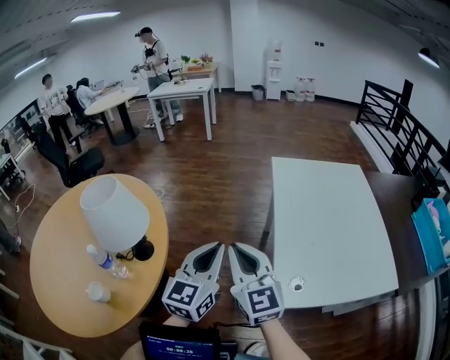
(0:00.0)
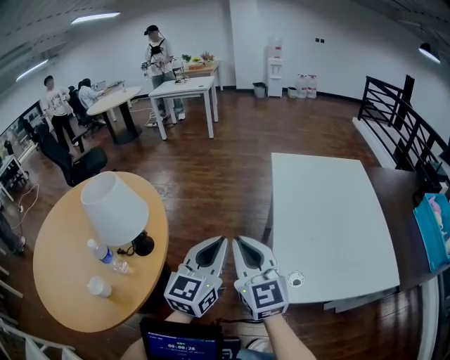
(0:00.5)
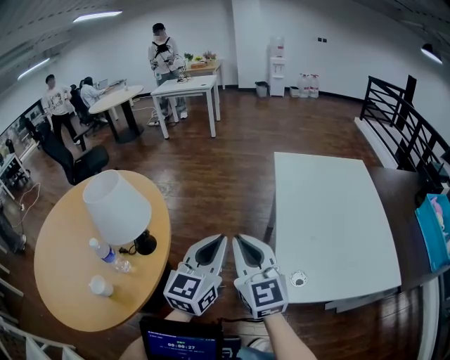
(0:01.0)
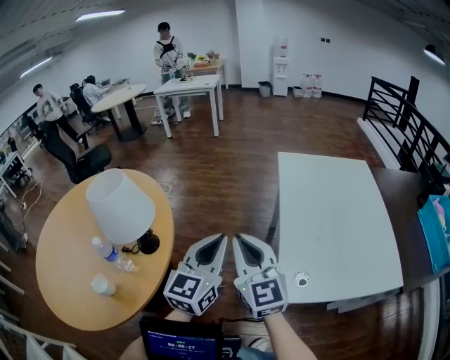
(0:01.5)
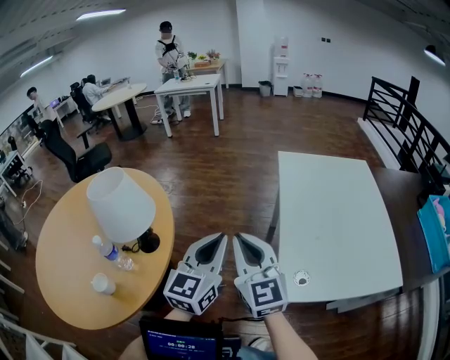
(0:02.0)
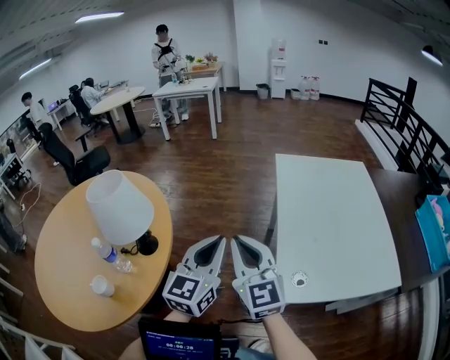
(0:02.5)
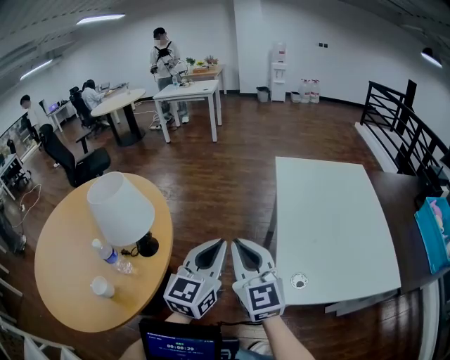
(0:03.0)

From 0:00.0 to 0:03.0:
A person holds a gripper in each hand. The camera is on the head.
From 0:00.0 to 0:01.5: The grippers move only a little.
From 0:01.5 to 0:03.0: Both grippers stay put.

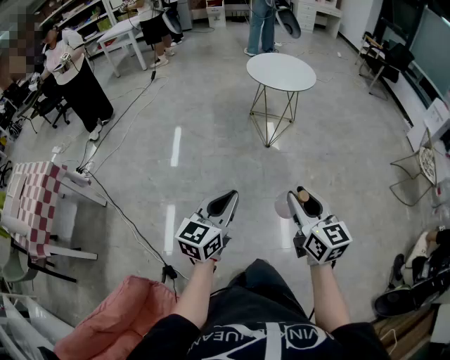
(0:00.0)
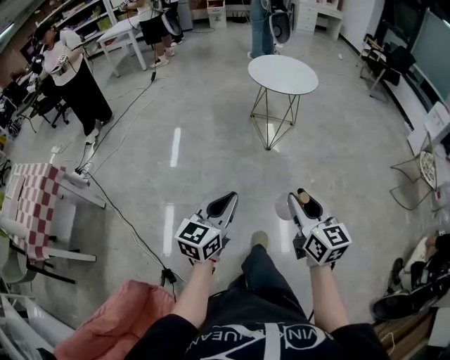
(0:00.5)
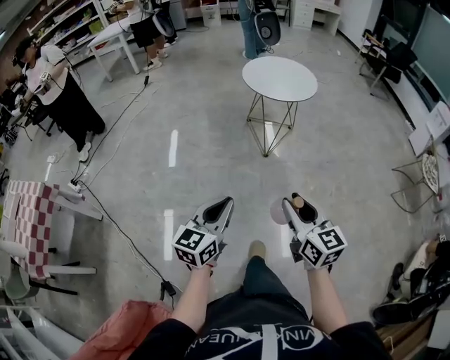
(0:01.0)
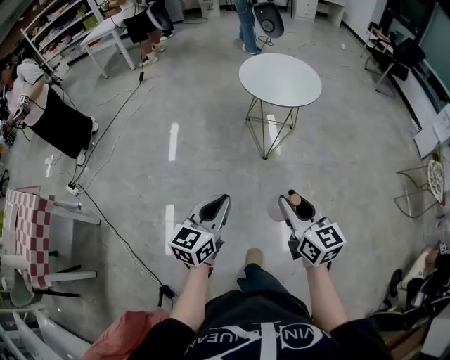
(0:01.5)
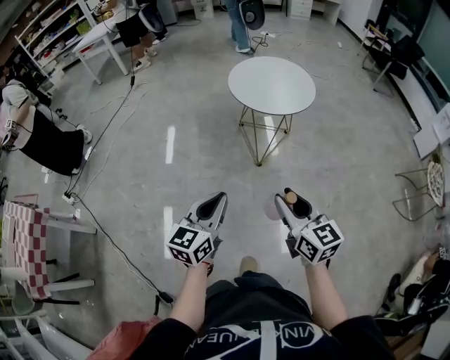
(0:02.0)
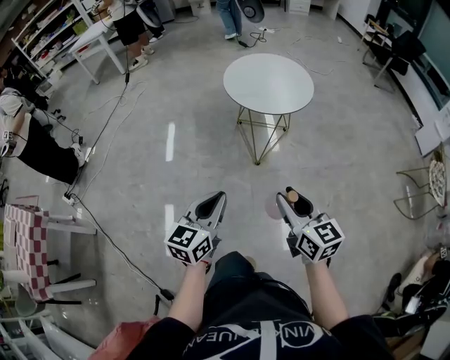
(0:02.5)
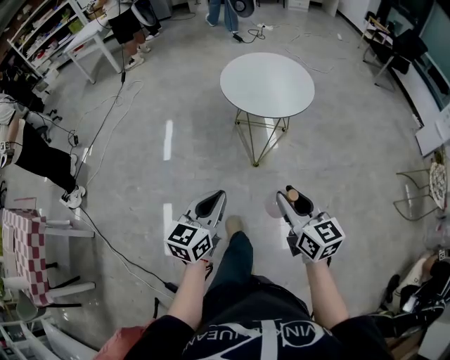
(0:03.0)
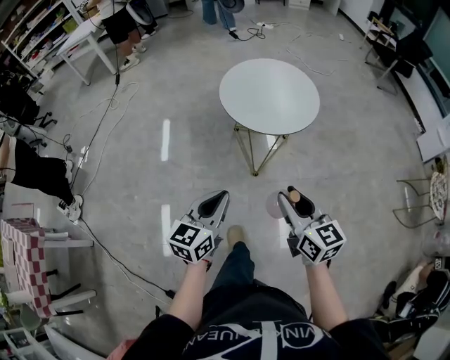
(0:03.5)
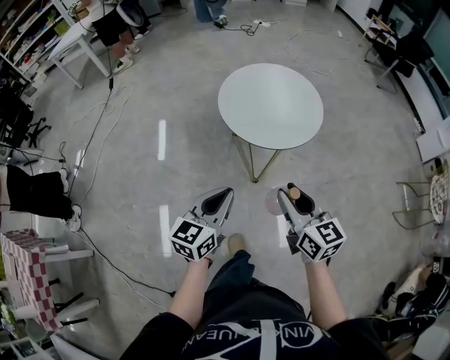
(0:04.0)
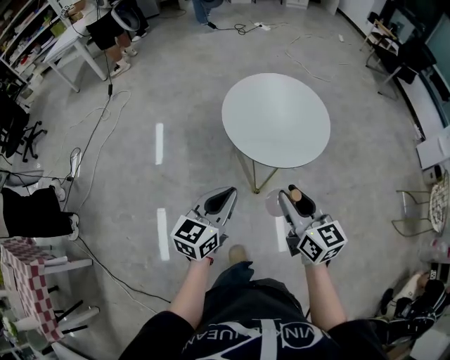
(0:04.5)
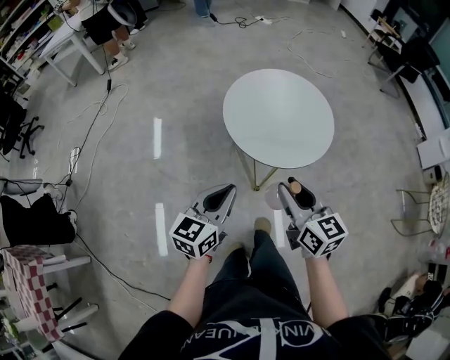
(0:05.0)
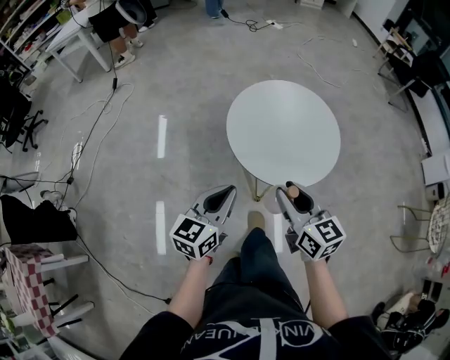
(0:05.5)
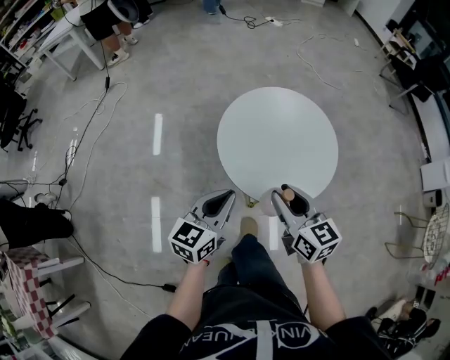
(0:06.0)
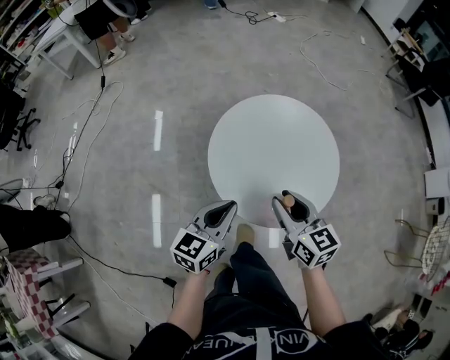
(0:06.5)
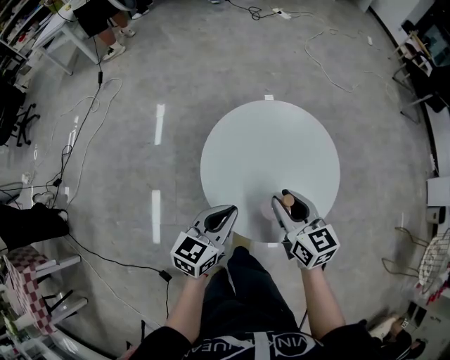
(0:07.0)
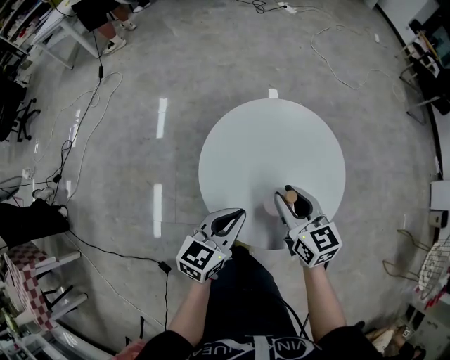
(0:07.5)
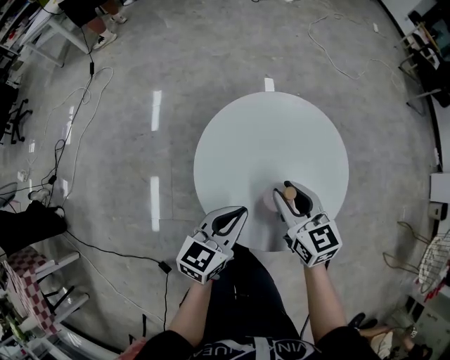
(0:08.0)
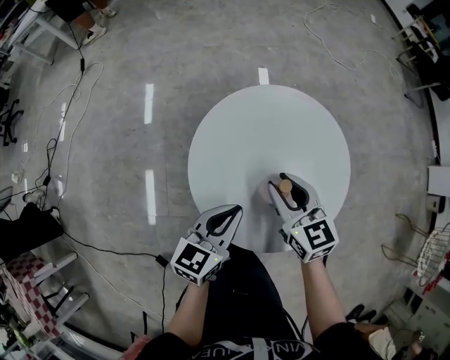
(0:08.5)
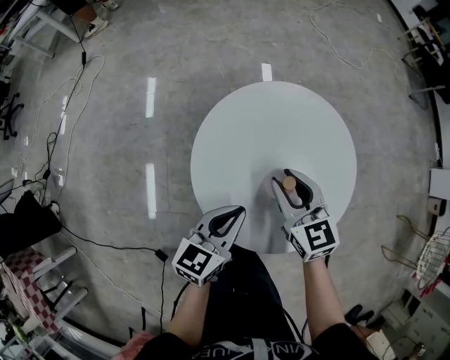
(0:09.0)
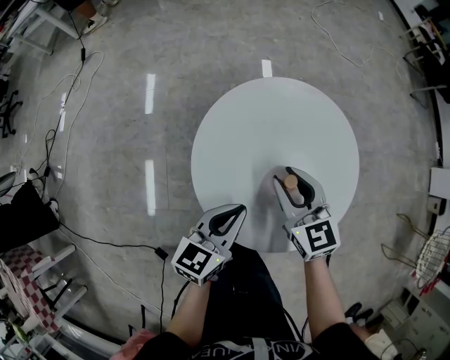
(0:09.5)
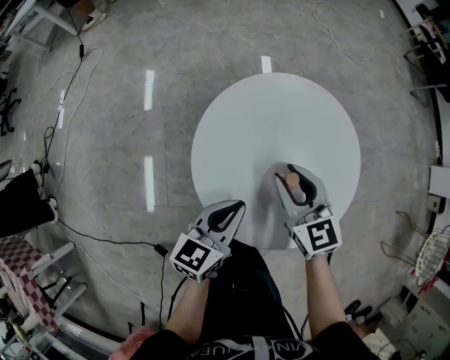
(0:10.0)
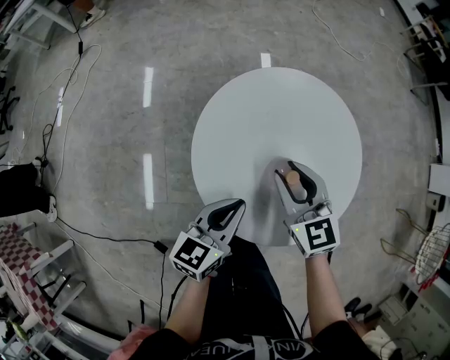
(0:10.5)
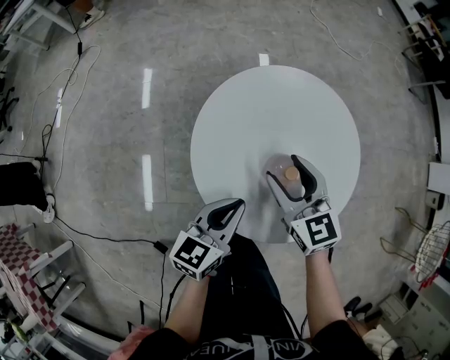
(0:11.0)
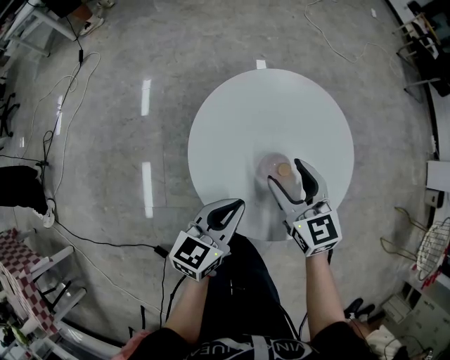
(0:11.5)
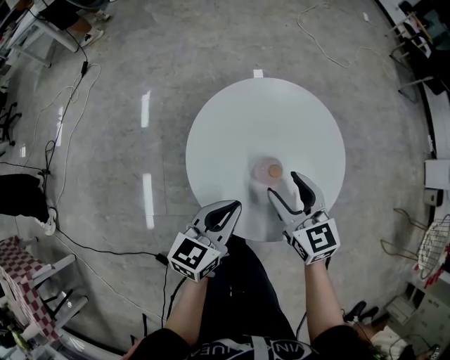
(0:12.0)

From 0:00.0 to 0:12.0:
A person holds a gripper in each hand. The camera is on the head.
From 0:00.0 to 0:02.0: Both grippers travel together forward, approximately 30 cm.
From 0:02.0 to 0:04.0: Both grippers travel together forward, roughly 25 cm.
From 0:04.0 to 0:06.0: Both grippers move forward, approximately 25 cm.
From 0:06.0 to 0:08.0: The left gripper heads forward, downward and to the right, covering some 15 cm. Meanwhile the right gripper is displaced forward and downward by approximately 20 cm.
From 0:08.0 to 0:10.0: The grippers stay close to where they were, moving slightly.
From 0:10.0 to 0:12.0: The right gripper ends up about 5 cm from where it was, and opens its fingers.

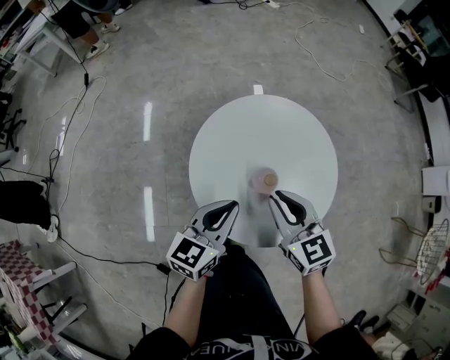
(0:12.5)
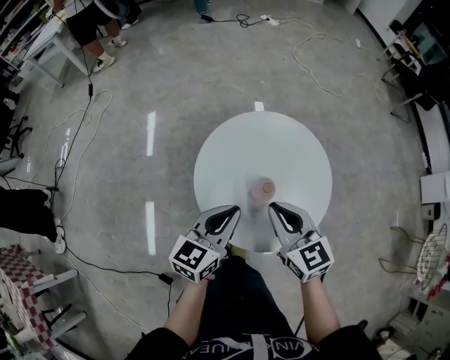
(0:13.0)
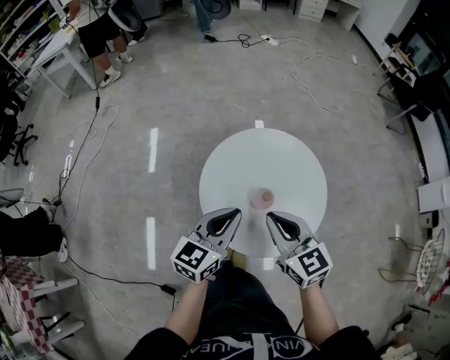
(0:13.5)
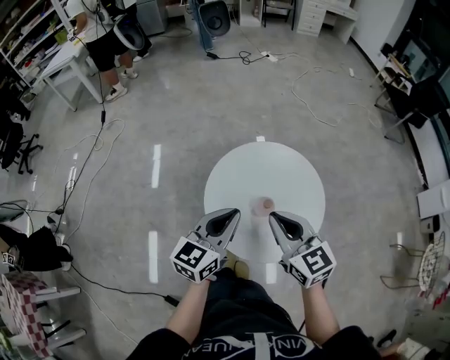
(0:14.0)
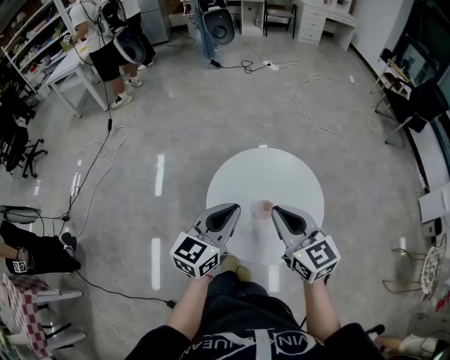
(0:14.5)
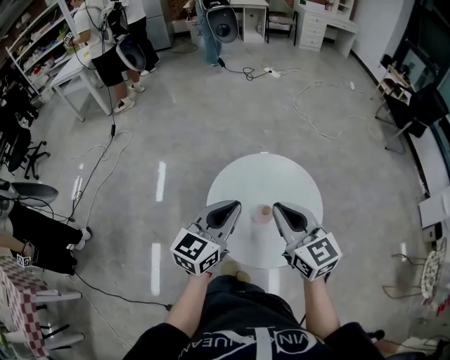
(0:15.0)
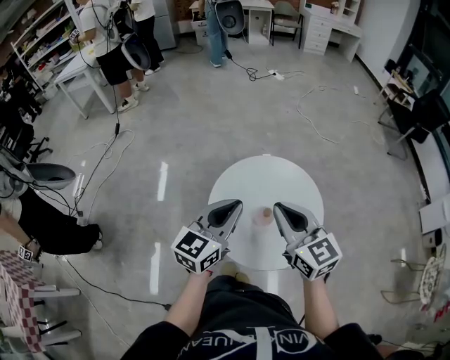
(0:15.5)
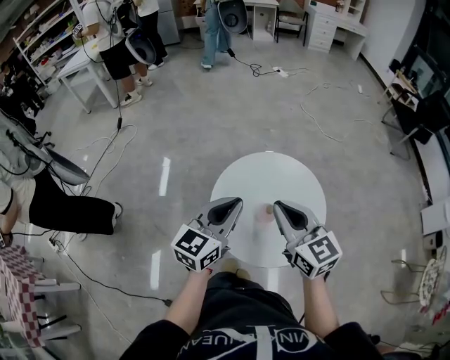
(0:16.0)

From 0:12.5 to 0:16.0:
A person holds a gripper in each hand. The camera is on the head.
From 0:12.5 to 0:14.5: The grippers both shift upward by some 15 cm.
From 0:14.5 to 0:16.0: There are only small adjustments of the grippers.

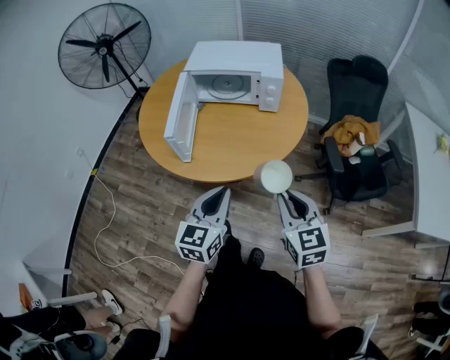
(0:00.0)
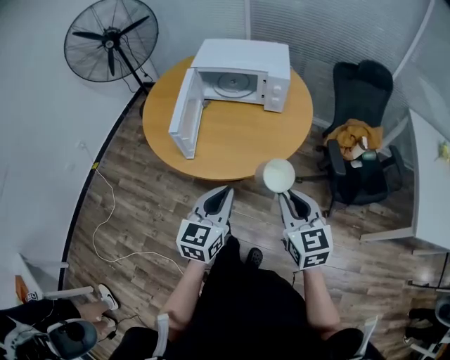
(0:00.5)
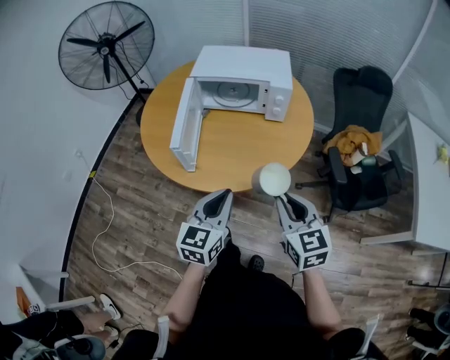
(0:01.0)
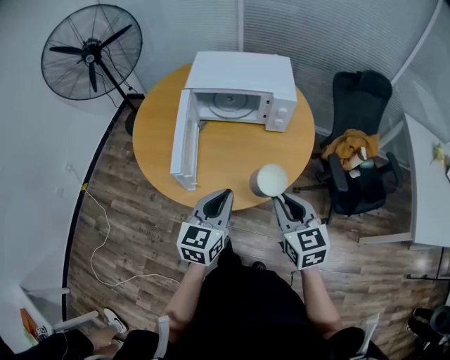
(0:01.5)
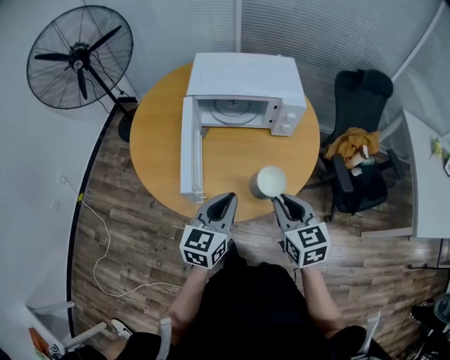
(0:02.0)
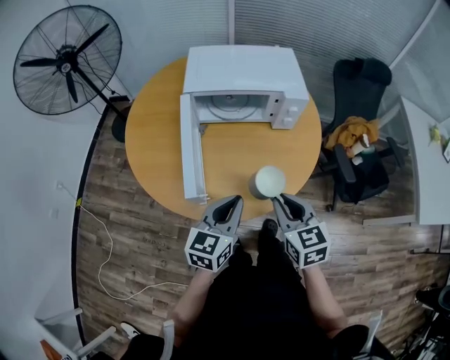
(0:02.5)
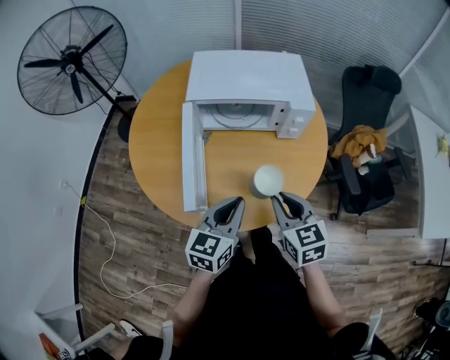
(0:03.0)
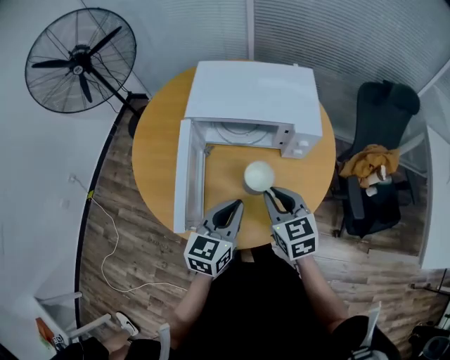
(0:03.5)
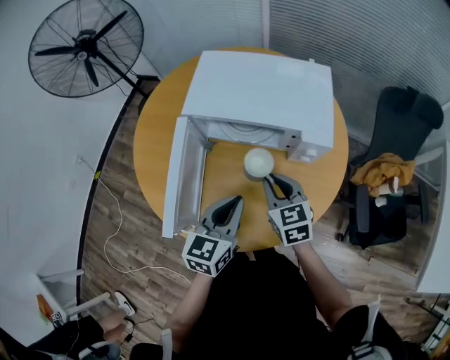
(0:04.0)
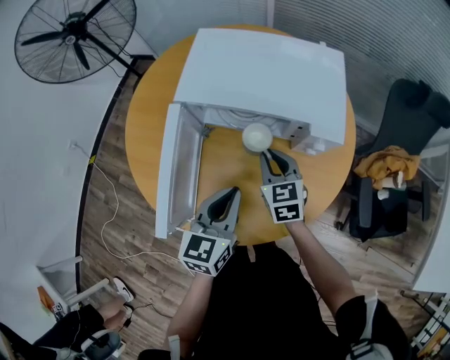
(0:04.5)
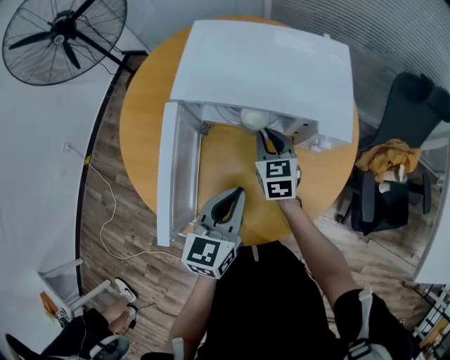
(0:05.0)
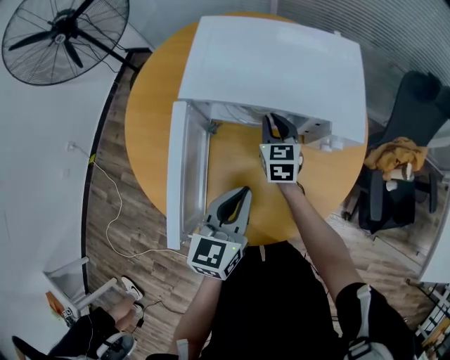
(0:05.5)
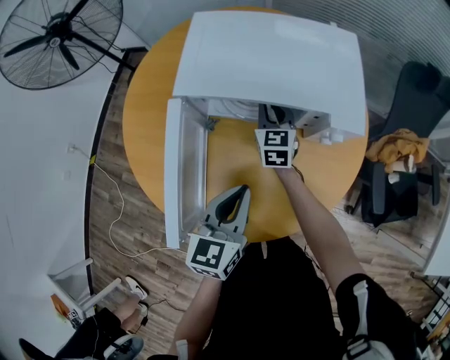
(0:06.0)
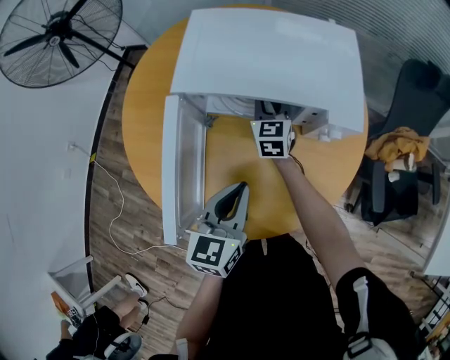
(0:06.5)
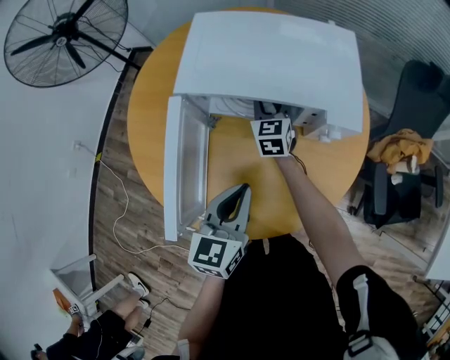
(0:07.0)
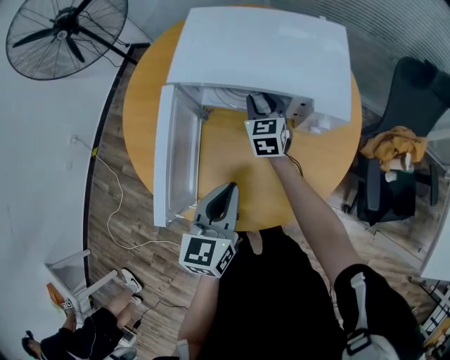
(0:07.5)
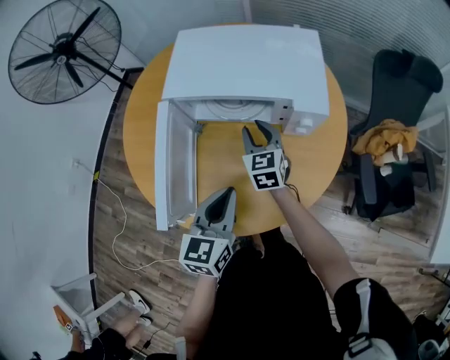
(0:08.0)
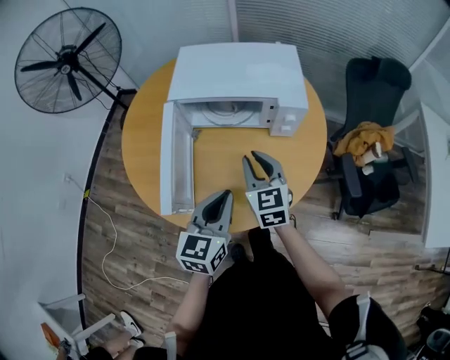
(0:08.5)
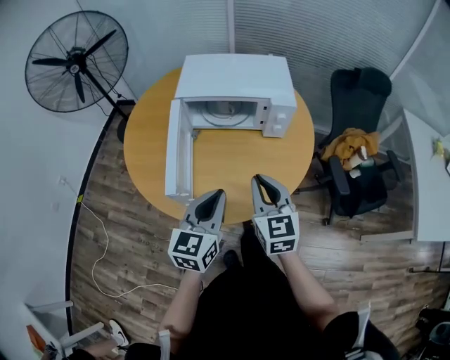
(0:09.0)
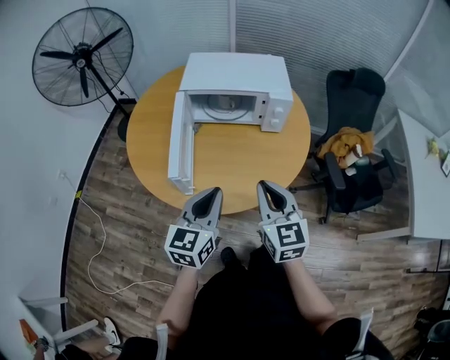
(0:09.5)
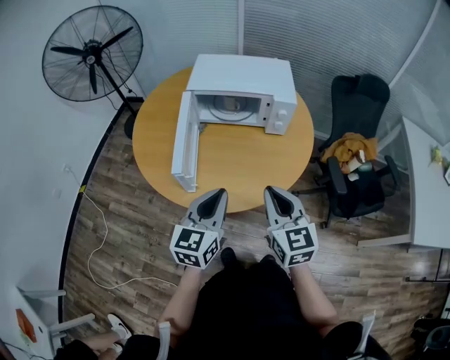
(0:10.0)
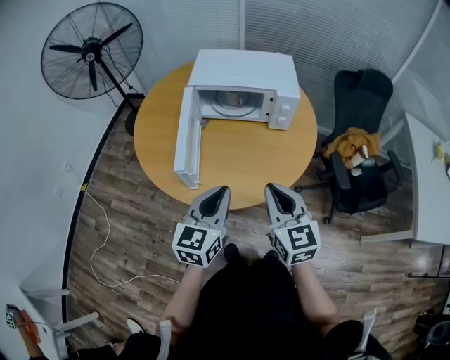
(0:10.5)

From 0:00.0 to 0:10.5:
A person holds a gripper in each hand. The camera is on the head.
From 0:00.0 to 0:02.0: The two grippers go about 20 cm forward and to the left.
From 0:02.0 to 0:04.0: The two grippers go approximately 20 cm forward.
From 0:04.0 to 0:06.5: The right gripper is displaced forward and downward by approximately 25 cm.
From 0:06.5 to 0:08.5: The left gripper shifts roughly 10 cm backward and upward, while the right gripper travels backward and upward by about 30 cm.
From 0:08.5 to 0:10.5: The right gripper goes approximately 20 cm backward. The left gripper goes some 15 cm backward.
